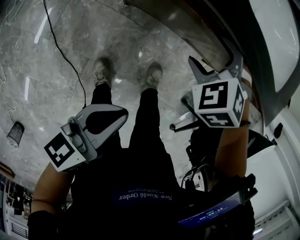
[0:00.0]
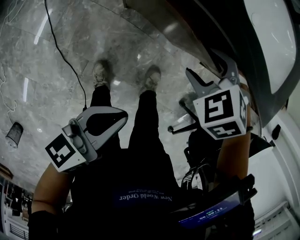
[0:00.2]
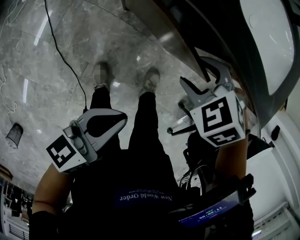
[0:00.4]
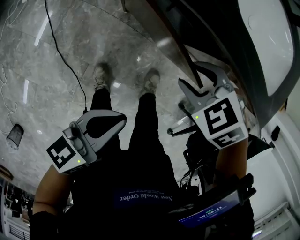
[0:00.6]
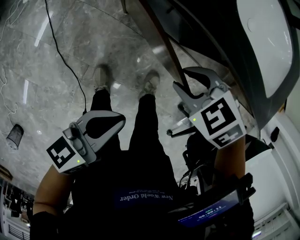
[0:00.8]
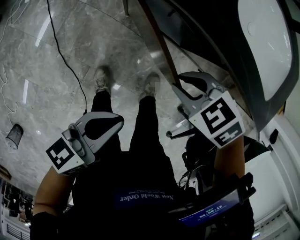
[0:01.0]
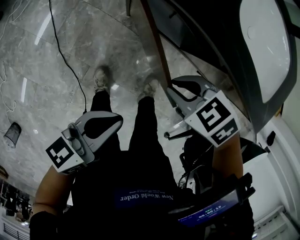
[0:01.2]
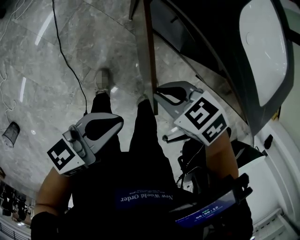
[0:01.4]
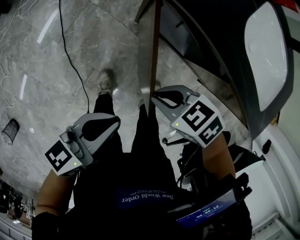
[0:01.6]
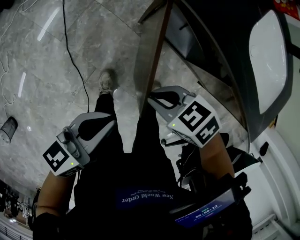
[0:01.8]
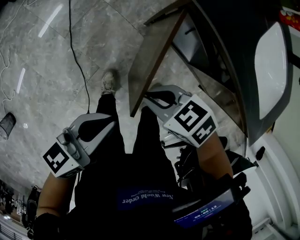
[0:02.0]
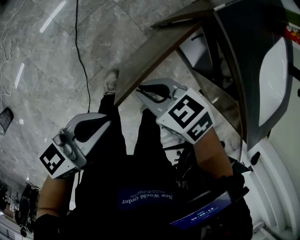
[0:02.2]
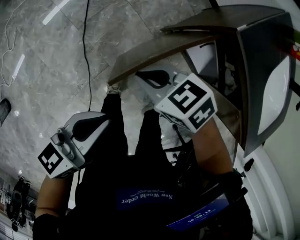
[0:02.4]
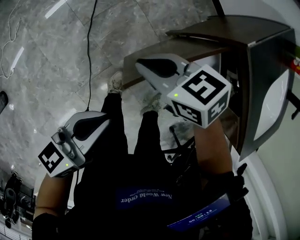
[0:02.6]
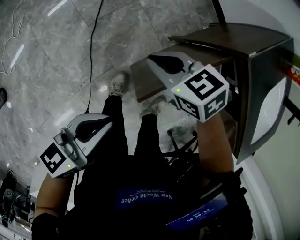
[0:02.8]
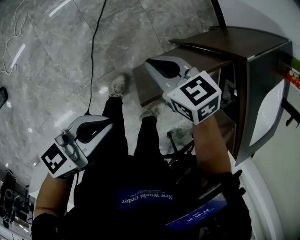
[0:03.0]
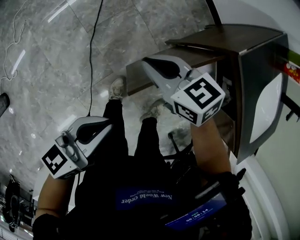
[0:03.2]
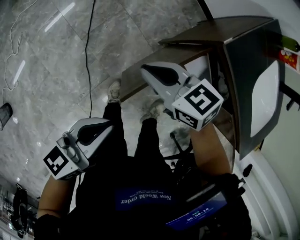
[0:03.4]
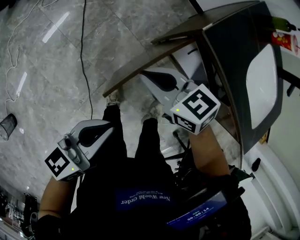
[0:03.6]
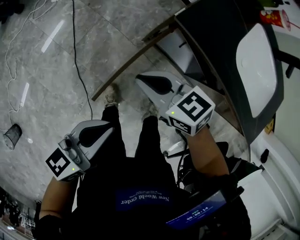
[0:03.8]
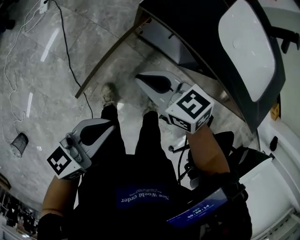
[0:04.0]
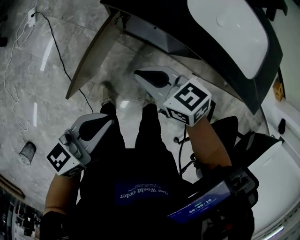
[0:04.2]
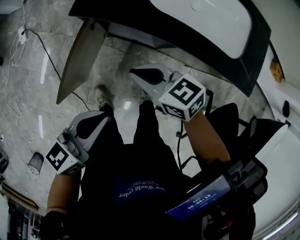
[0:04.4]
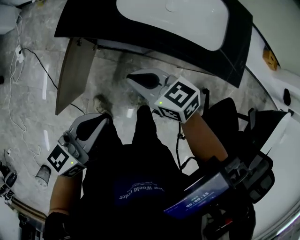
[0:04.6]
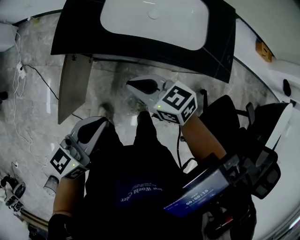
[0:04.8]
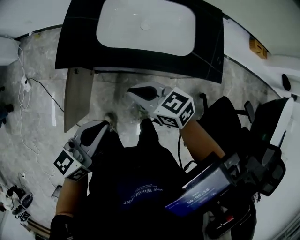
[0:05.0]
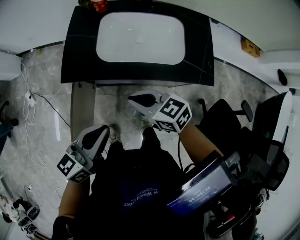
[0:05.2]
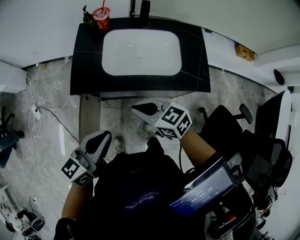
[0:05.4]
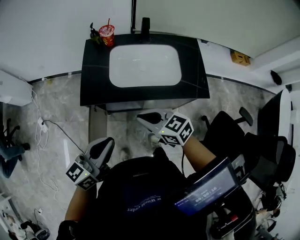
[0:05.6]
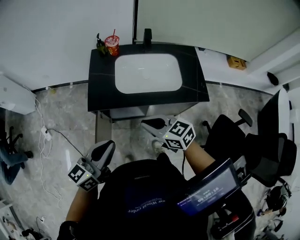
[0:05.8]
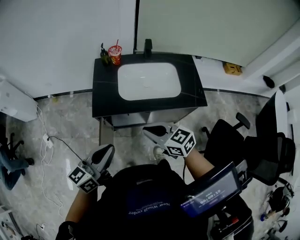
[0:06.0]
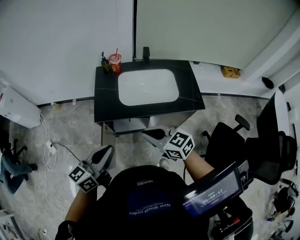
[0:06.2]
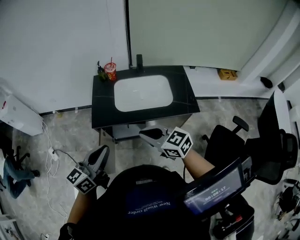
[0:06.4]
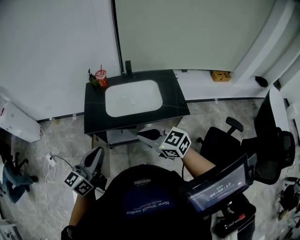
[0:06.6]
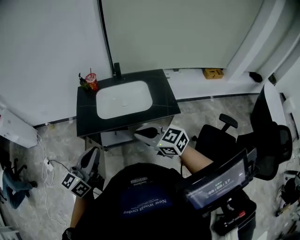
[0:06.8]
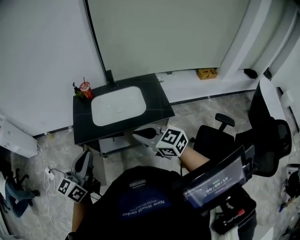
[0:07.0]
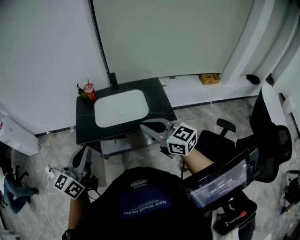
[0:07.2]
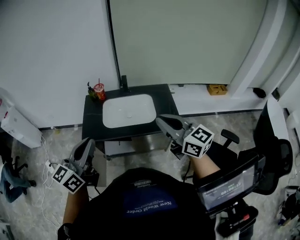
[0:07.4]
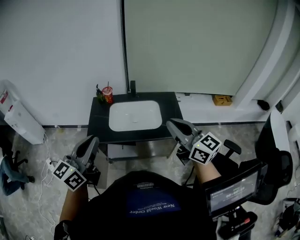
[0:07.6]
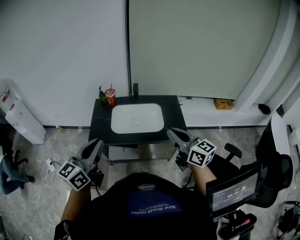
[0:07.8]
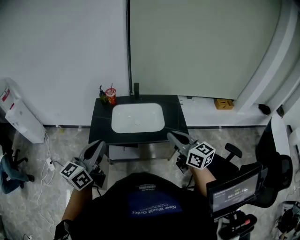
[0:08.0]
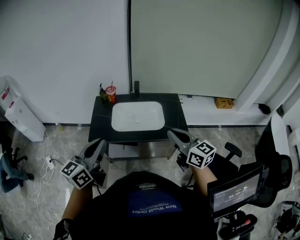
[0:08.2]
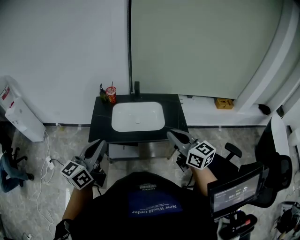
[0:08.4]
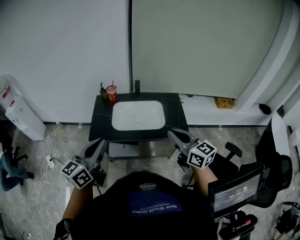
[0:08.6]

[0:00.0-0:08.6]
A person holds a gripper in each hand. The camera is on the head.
0:00.0 to 0:01.4: The right gripper ends up approximately 15 cm from where it was, swivels approximately 50 degrees, and closes its fingers.
0:01.4 to 0:02.8: The right gripper shifts by approximately 30 cm, while the left gripper changes place by approximately 25 cm, and changes its angle by approximately 20 degrees.
0:02.8 to 0:04.4: The left gripper changes place by some 30 cm, and turns by about 30 degrees; the right gripper moves some 35 cm, and swivels some 40 degrees.
0:04.4 to 0:05.8: Both grippers travel together upward, about 20 cm. The right gripper changes its angle by some 20 degrees.
0:05.8 to 0:07.2: The left gripper shifts approximately 15 cm upward and to the right. Meanwhile the right gripper heads upward and to the right, covering roughly 25 cm, and turns by roughly 30 degrees.
0:07.2 to 0:08.6: The right gripper reaches some 5 cm upward, then returns.

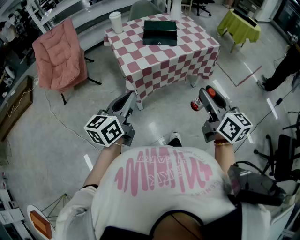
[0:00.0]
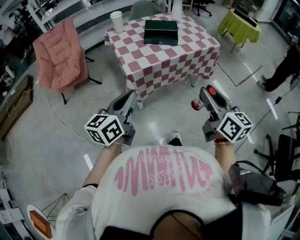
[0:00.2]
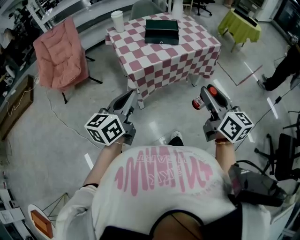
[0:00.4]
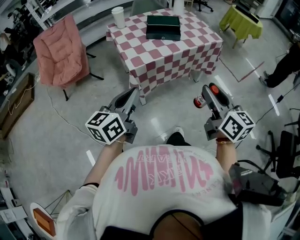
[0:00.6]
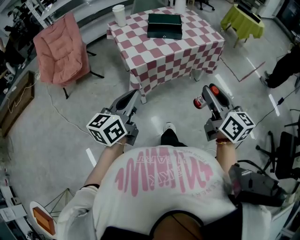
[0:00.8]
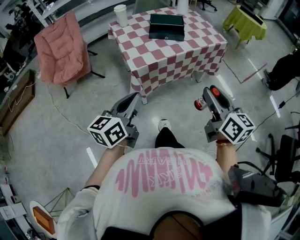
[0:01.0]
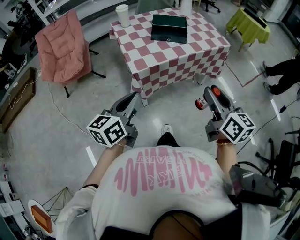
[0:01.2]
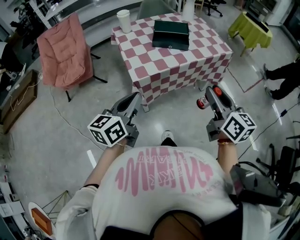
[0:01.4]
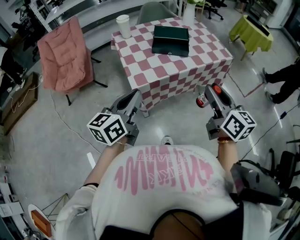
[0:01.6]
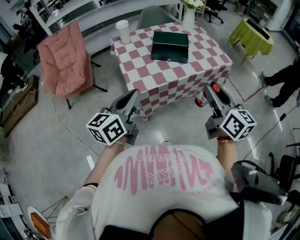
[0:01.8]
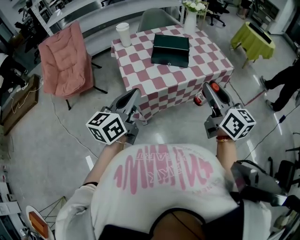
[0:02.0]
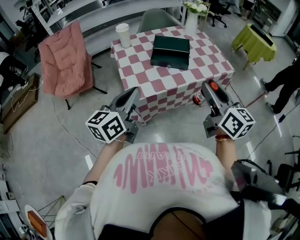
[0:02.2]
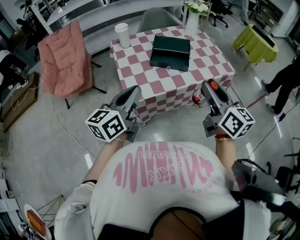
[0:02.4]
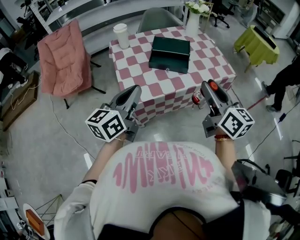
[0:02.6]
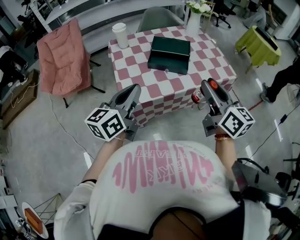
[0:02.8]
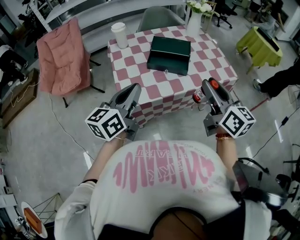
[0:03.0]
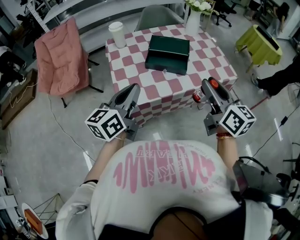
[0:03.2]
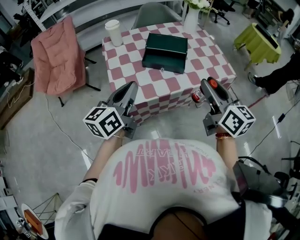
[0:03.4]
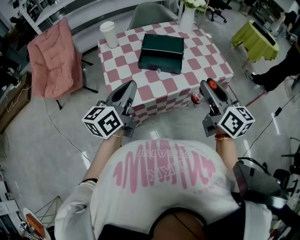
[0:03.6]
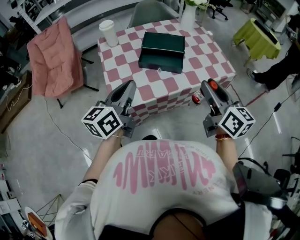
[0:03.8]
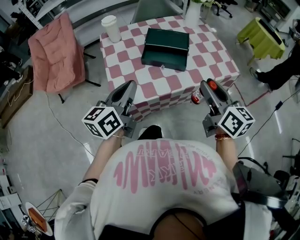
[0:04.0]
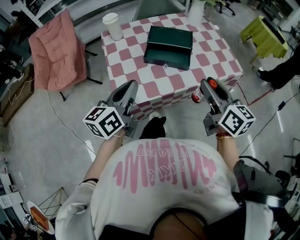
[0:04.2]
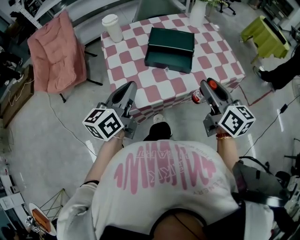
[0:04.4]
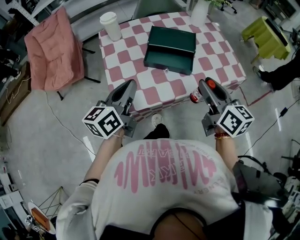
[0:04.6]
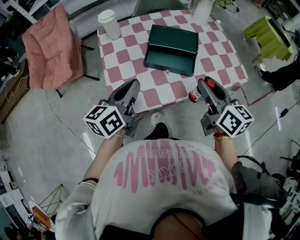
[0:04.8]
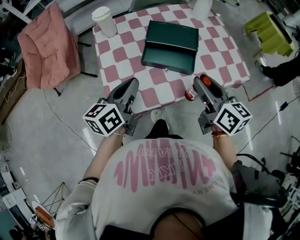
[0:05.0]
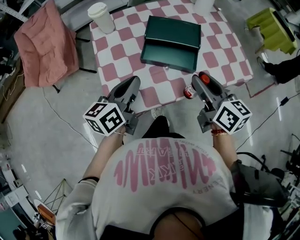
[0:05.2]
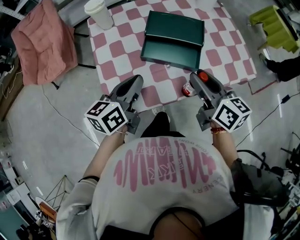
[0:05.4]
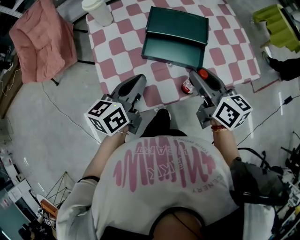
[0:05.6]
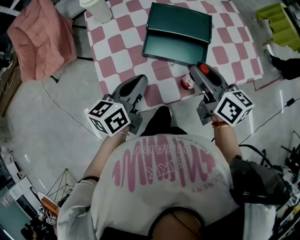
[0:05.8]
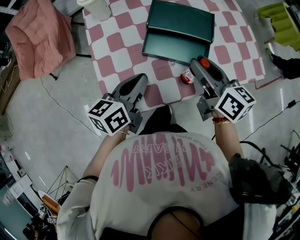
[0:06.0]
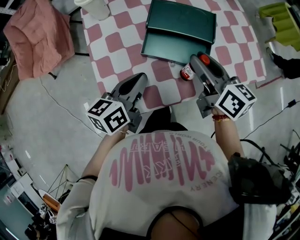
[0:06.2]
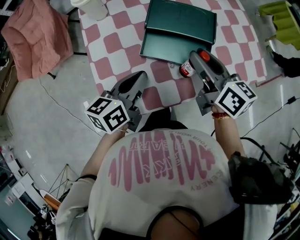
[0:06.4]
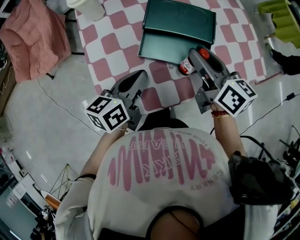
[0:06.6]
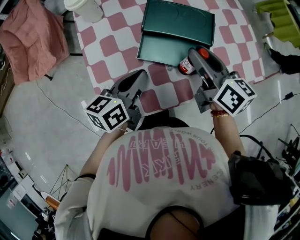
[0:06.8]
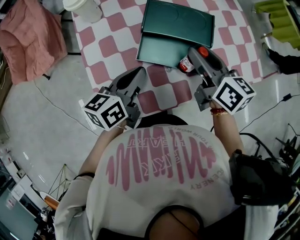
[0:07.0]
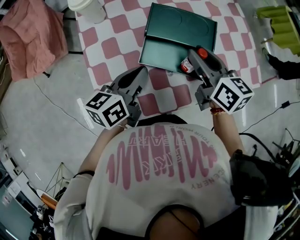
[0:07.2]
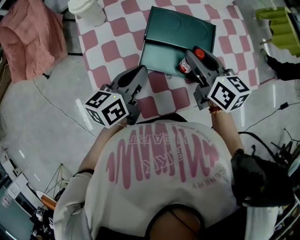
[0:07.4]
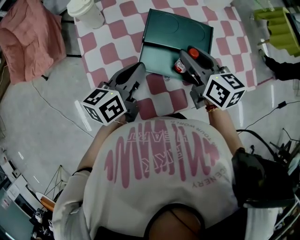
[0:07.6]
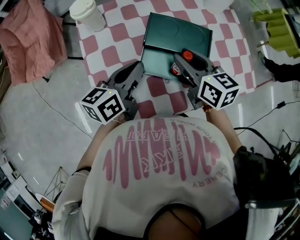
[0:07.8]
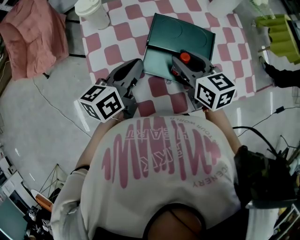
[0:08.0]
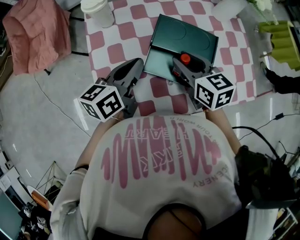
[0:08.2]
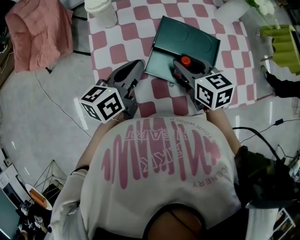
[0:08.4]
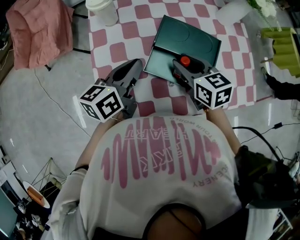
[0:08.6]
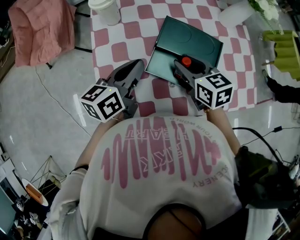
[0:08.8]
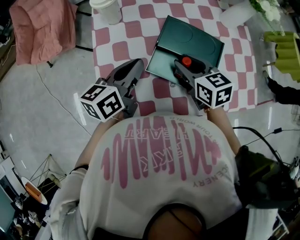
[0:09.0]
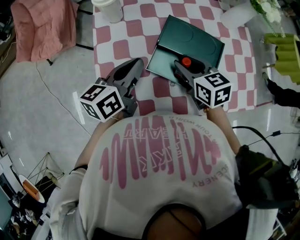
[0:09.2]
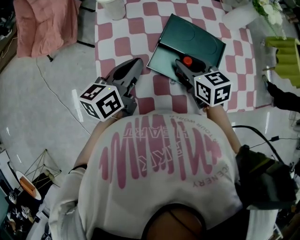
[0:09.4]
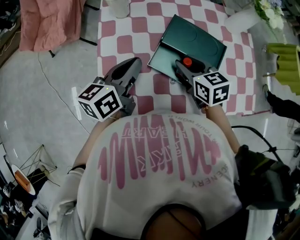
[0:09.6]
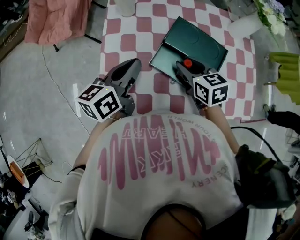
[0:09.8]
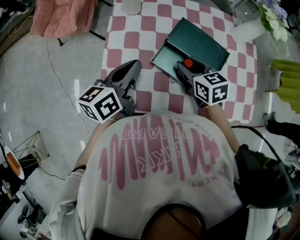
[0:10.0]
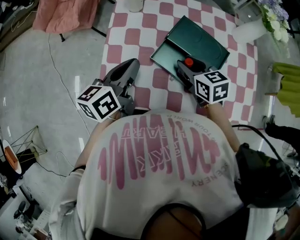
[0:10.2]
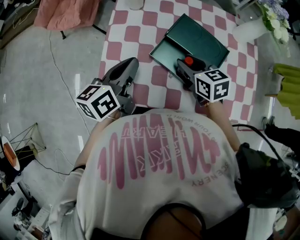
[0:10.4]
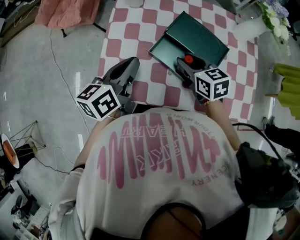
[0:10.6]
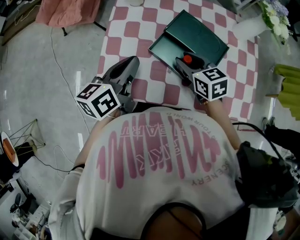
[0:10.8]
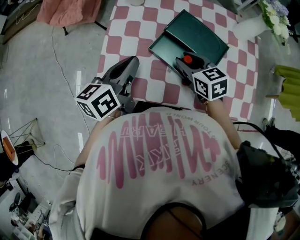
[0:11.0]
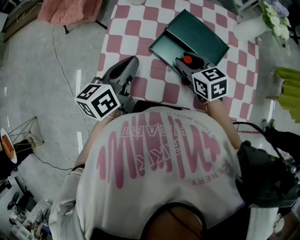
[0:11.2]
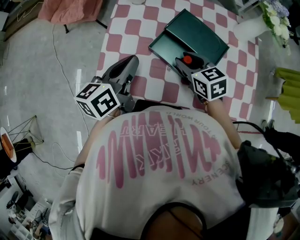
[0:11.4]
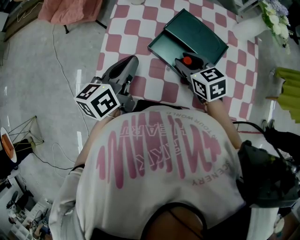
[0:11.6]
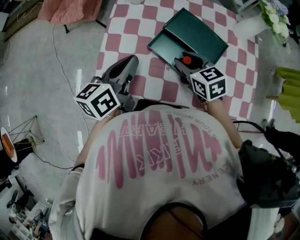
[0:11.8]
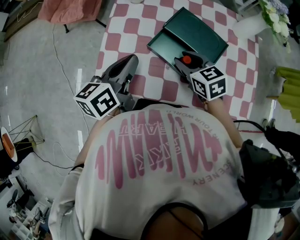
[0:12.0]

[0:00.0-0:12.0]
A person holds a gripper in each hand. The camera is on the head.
0:00.0 to 0:01.6: The two grippers go about 10 cm forward.
0:01.6 to 0:03.0: The two grippers go roughly 15 cm forward.
0:03.0 to 0:04.4: The left gripper is displaced forward by some 10 cm; the right gripper moves forward and downward, about 10 cm.
0:04.4 to 0:06.0: The right gripper is displaced forward and downward by about 20 cm. Meanwhile the left gripper heads downward and forward, covering about 15 cm.
0:06.0 to 0:07.6: The grippers both shift forward by about 10 cm.
0:07.6 to 0:09.0: The right gripper ends up some 5 cm from where it was, and changes its angle by some 20 degrees.
0:09.0 to 0:10.4: The left gripper goes roughly 5 cm backward.
0:10.4 to 0:12.0: The grippers move only a little.

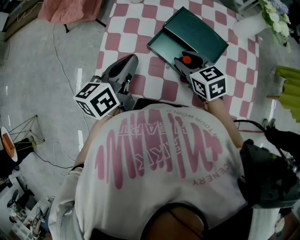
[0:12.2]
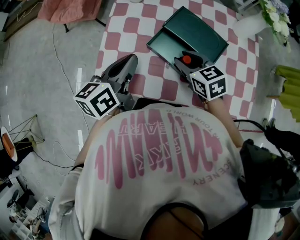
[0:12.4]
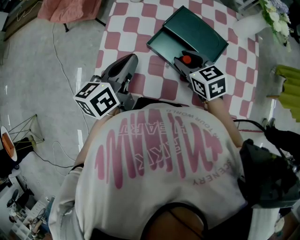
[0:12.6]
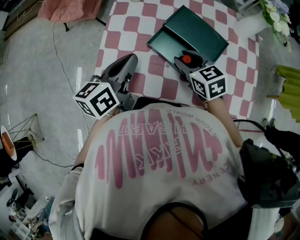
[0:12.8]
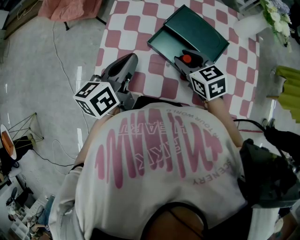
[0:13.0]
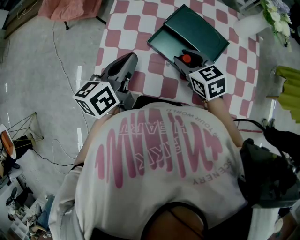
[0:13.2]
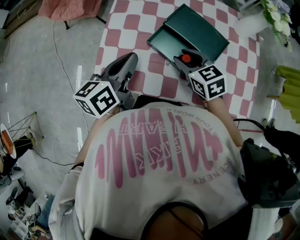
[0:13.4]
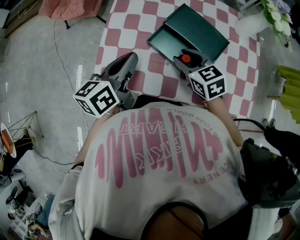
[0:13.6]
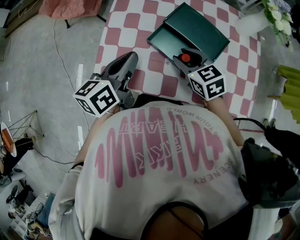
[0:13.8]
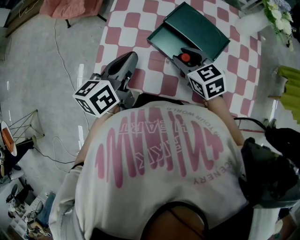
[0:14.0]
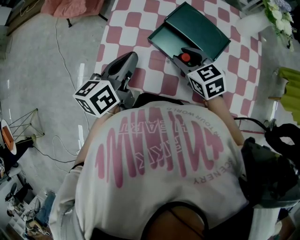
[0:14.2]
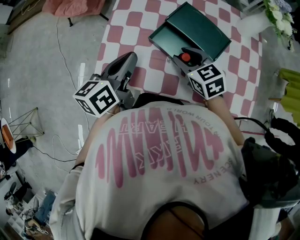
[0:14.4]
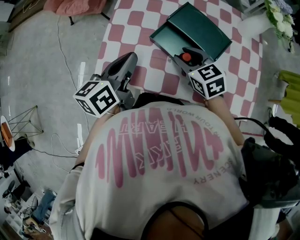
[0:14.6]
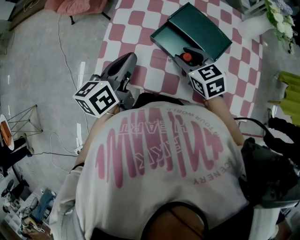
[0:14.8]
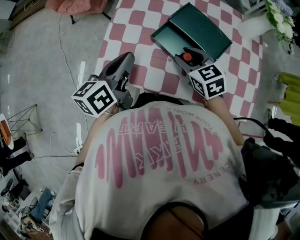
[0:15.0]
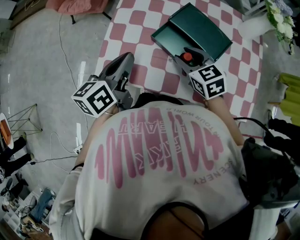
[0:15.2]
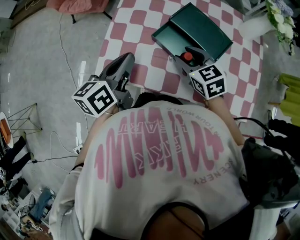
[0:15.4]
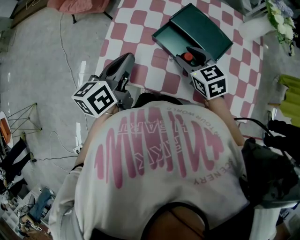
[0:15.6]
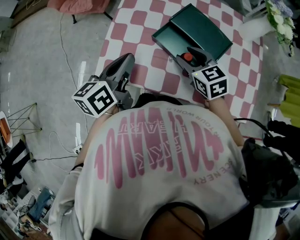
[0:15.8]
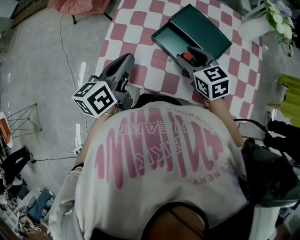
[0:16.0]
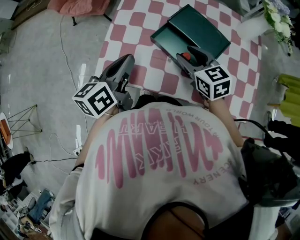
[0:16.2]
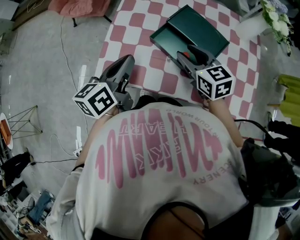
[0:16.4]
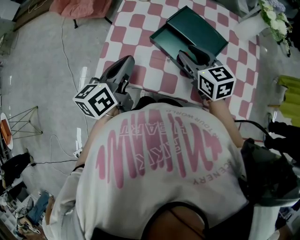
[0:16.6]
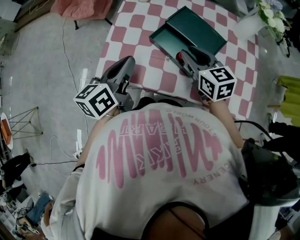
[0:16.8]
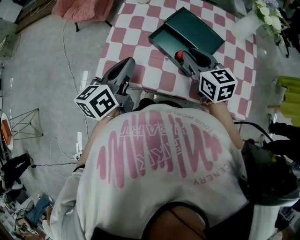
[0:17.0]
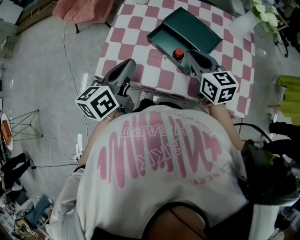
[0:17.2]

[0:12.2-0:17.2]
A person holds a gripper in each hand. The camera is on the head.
0:12.2 to 0:13.8: Both grippers stay about where they are.
0:13.8 to 0:15.6: The grippers move only a little.
0:15.6 to 0:17.2: The right gripper goes approximately 5 cm upward, rotates some 20 degrees, and closes its fingers. Meanwhile the left gripper goes about 5 cm backward.
